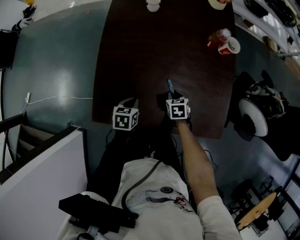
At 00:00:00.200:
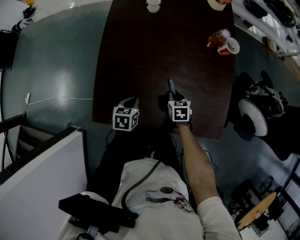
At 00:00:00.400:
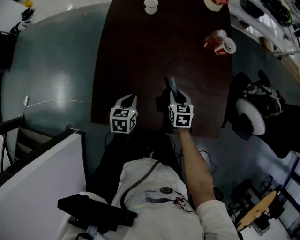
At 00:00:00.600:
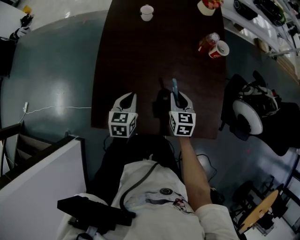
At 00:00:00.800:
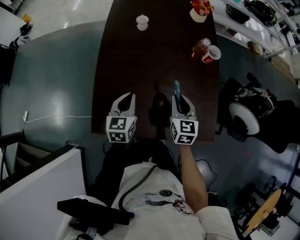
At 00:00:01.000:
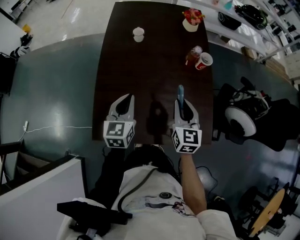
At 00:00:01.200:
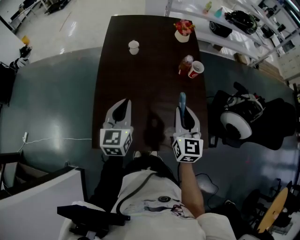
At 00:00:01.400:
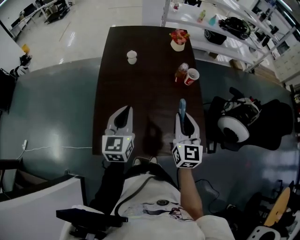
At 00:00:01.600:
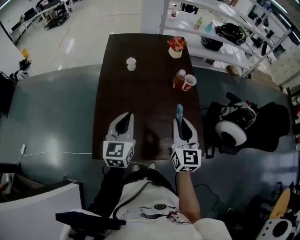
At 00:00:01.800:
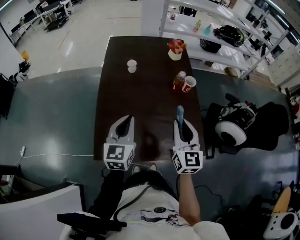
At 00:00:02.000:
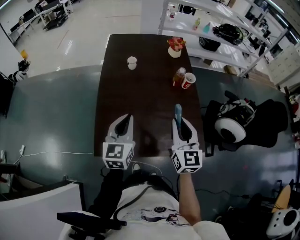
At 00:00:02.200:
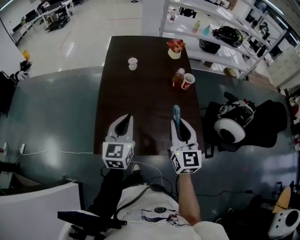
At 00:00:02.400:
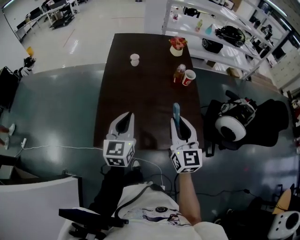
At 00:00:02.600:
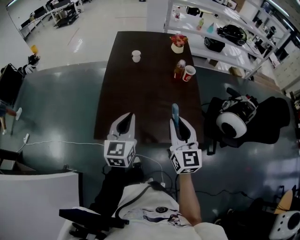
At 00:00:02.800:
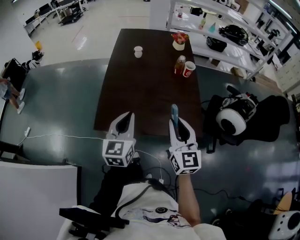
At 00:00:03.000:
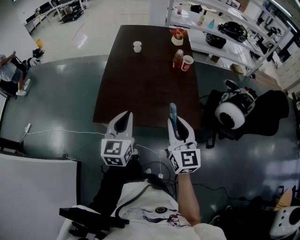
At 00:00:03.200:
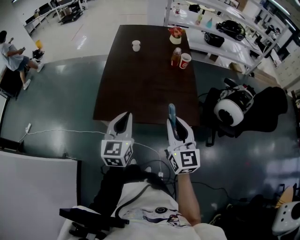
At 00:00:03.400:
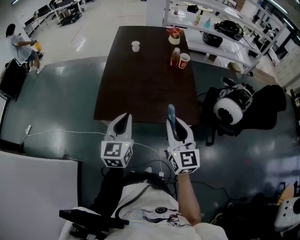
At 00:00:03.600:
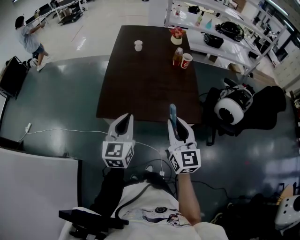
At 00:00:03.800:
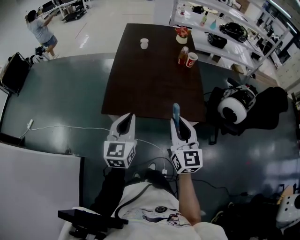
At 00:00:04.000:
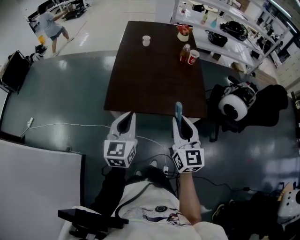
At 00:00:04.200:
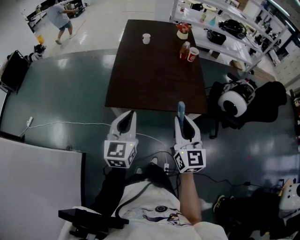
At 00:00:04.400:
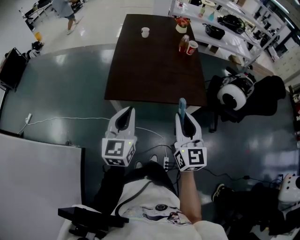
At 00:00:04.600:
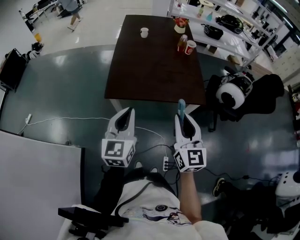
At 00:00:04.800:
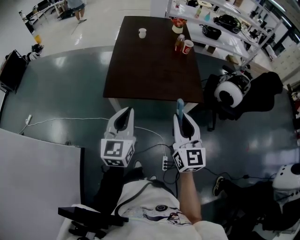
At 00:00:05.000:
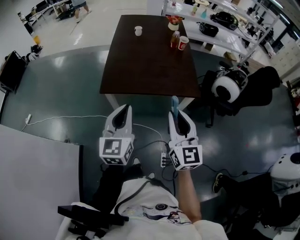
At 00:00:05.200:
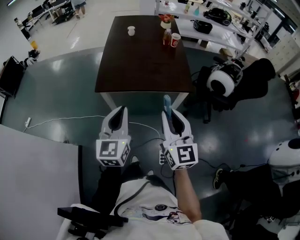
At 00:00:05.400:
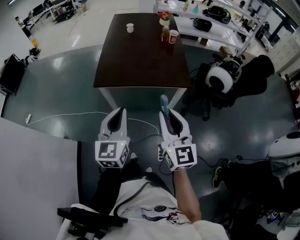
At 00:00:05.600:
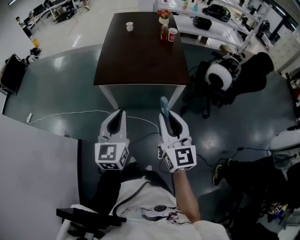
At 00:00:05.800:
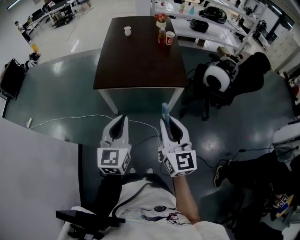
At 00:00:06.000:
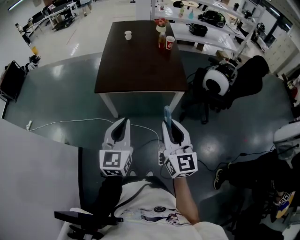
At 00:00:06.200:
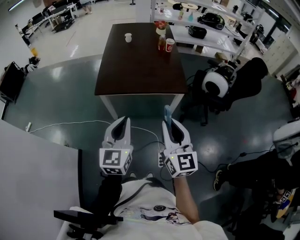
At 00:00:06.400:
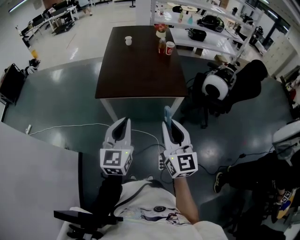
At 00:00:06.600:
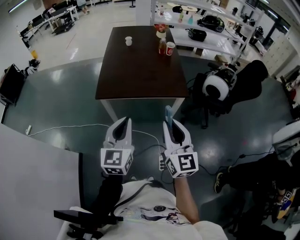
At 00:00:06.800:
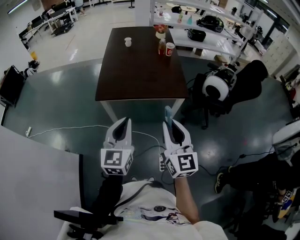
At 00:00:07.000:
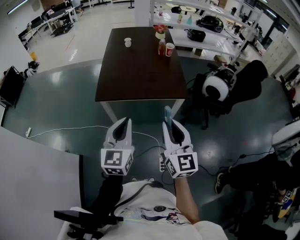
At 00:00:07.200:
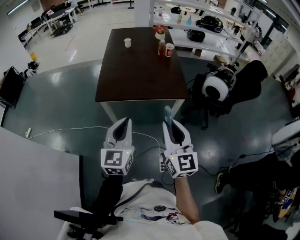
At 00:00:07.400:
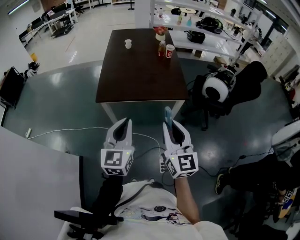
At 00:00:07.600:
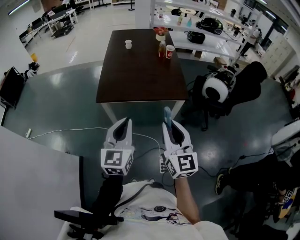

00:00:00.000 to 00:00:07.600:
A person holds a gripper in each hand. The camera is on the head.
00:00:00.000 to 00:00:01.600: Both grippers move upward, roughly 35 cm. The left gripper tilts its fingers approximately 50 degrees upward, while the right gripper tilts its fingers about 60 degrees upward.
00:00:01.600 to 00:00:03.000: The grippers both shift backward by some 20 cm.
00:00:03.000 to 00:00:04.600: The right gripper is displaced backward by approximately 15 cm. Meanwhile the left gripper is displaced backward and to the left by about 15 cm.
00:00:04.600 to 00:00:06.000: The right gripper travels backward by approximately 15 cm. The left gripper is displaced backward and to the right by about 15 cm.
00:00:06.000 to 00:00:07.600: The grippers make only small movements.

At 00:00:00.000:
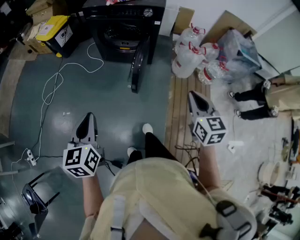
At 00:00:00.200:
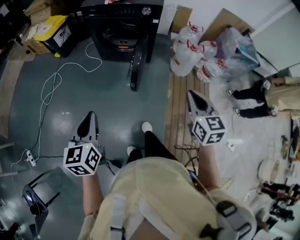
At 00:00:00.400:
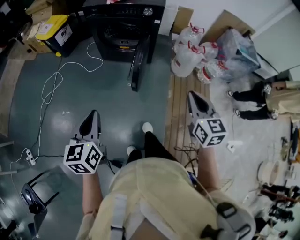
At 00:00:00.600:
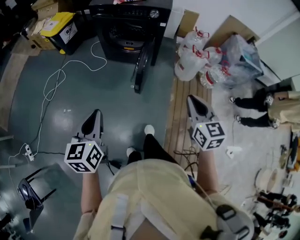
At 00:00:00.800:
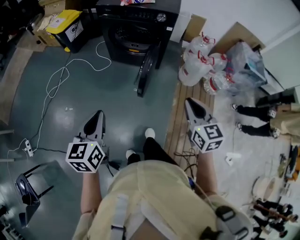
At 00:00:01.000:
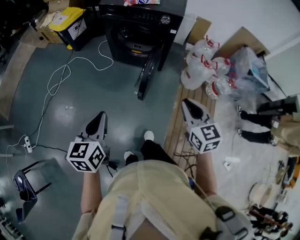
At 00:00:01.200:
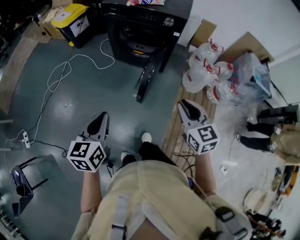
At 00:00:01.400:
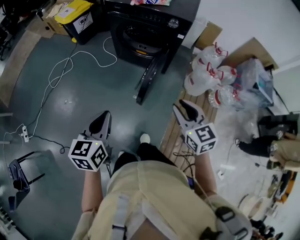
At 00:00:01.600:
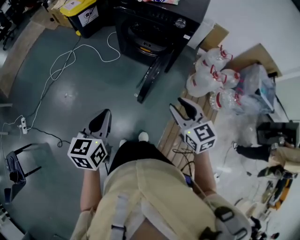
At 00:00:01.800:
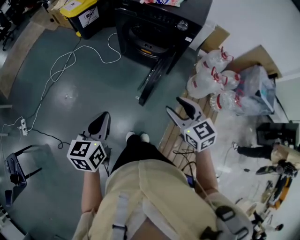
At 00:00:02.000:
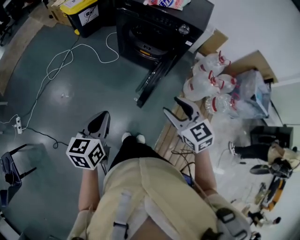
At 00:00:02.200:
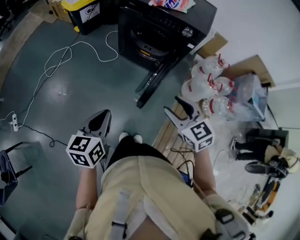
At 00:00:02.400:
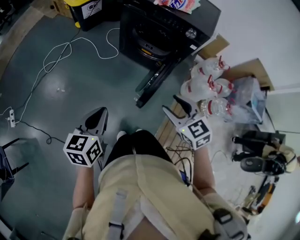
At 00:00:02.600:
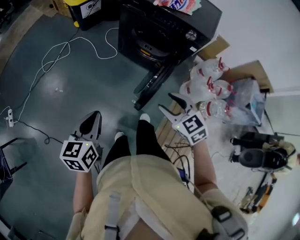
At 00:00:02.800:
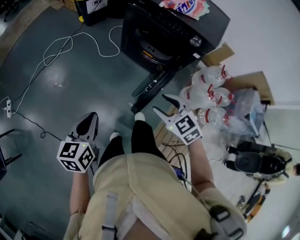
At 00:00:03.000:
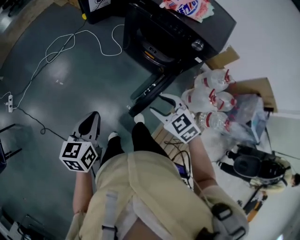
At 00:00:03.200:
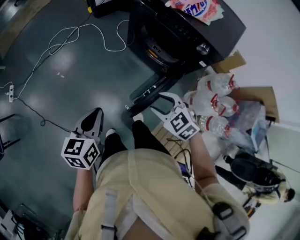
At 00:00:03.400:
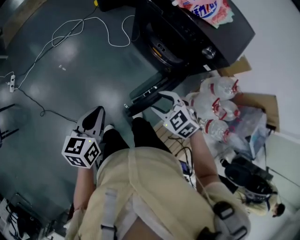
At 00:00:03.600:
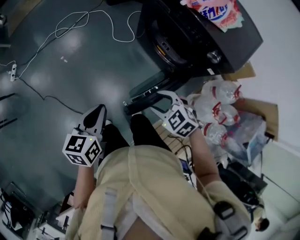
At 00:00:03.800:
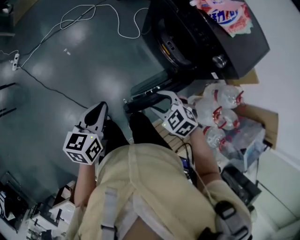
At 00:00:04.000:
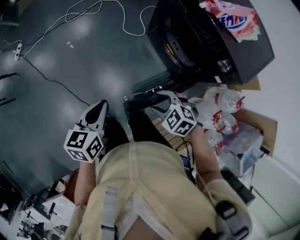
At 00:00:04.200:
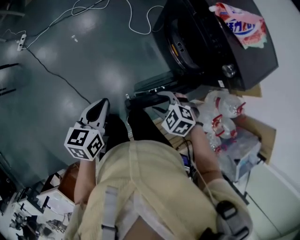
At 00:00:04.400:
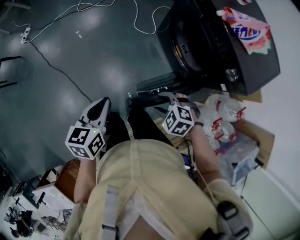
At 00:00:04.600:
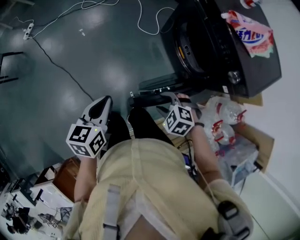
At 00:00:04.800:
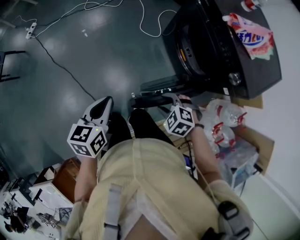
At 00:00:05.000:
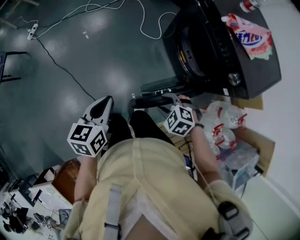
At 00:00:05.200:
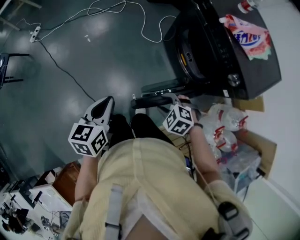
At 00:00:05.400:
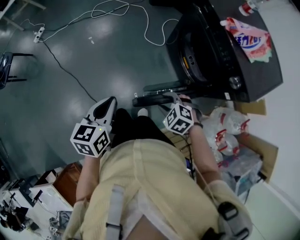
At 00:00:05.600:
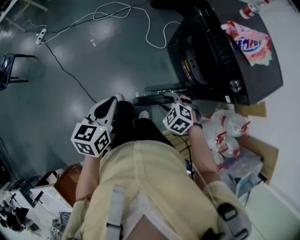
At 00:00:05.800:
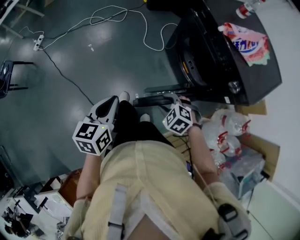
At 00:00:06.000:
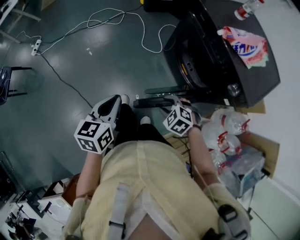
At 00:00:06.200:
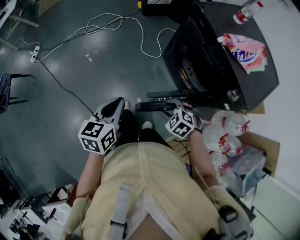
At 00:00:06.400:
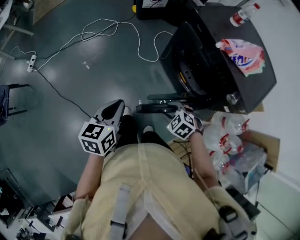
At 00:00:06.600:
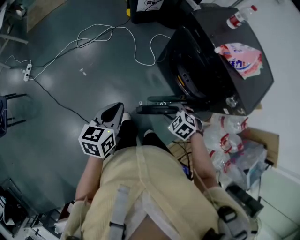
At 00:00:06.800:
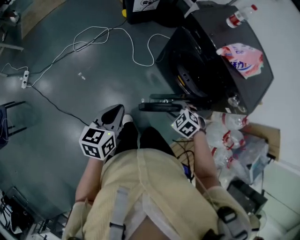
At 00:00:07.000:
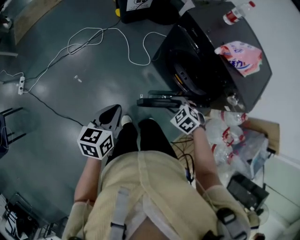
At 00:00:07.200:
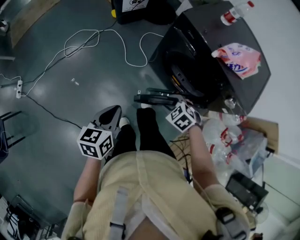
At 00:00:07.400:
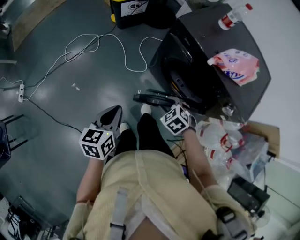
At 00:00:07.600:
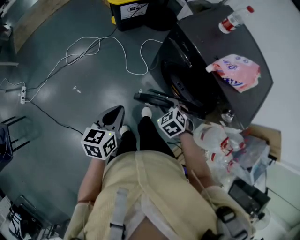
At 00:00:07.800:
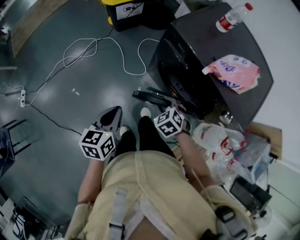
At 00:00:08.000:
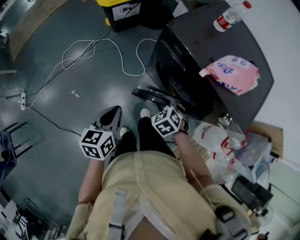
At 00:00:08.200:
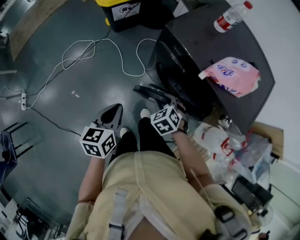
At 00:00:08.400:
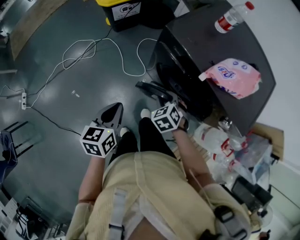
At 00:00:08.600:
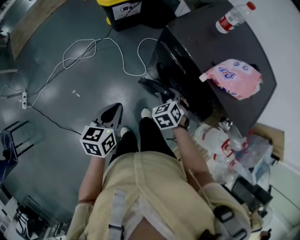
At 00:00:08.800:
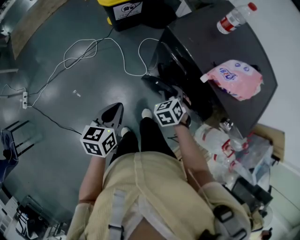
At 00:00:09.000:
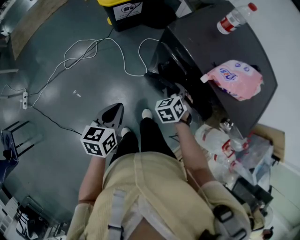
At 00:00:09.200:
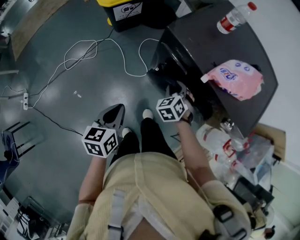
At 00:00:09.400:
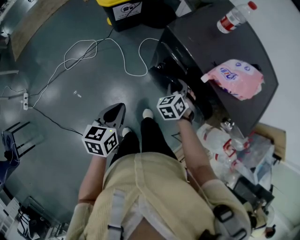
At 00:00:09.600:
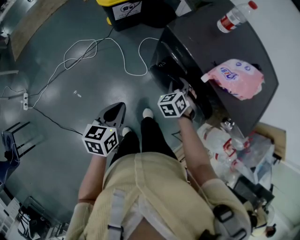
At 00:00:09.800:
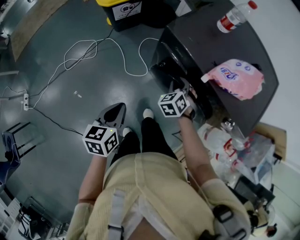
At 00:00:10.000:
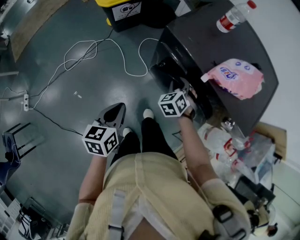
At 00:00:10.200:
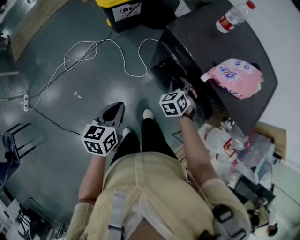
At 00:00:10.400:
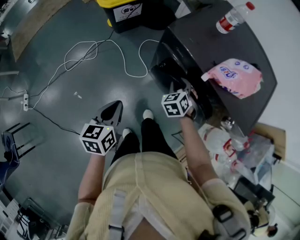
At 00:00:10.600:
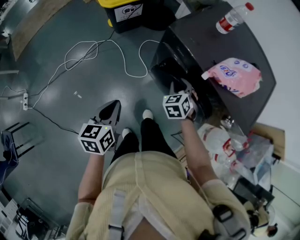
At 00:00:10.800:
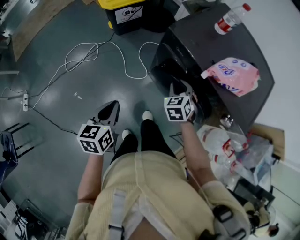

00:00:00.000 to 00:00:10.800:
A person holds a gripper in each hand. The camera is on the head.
00:00:00.000 to 00:00:01.600: The right gripper goes approximately 15 cm forward and to the left, turns by approximately 30 degrees, and opens its fingers. Meanwhile the left gripper is displaced forward and to the right by about 10 cm.
00:00:01.600 to 00:00:03.000: The left gripper goes about 10 cm forward. The right gripper goes some 15 cm forward and downward, and swivels roughly 40 degrees.
00:00:03.000 to 00:00:04.600: The left gripper ends up about 10 cm from where it was, and changes its angle by some 20 degrees, while the right gripper shifts about 15 cm downward, and rotates some 50 degrees.
00:00:04.600 to 00:00:06.200: The grippers both shift forward by roughly 10 cm.
00:00:06.200 to 00:00:07.800: The right gripper moves approximately 25 cm, and swivels about 30 degrees, while the left gripper changes place by approximately 20 cm.
00:00:07.800 to 00:00:09.200: The left gripper shifts by some 5 cm. The right gripper shifts roughly 15 cm forward, and swivels some 20 degrees.
00:00:09.200 to 00:00:10.800: The grippers make only small movements.

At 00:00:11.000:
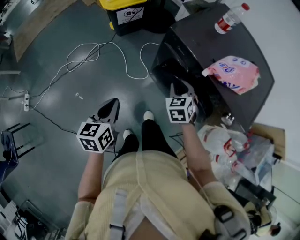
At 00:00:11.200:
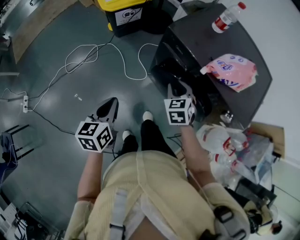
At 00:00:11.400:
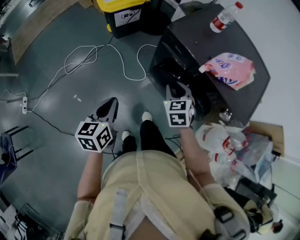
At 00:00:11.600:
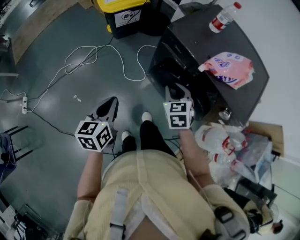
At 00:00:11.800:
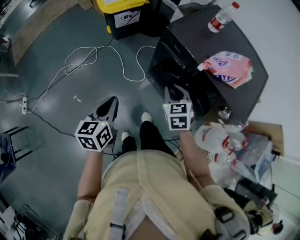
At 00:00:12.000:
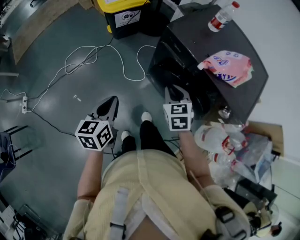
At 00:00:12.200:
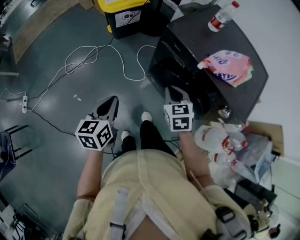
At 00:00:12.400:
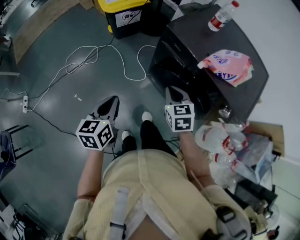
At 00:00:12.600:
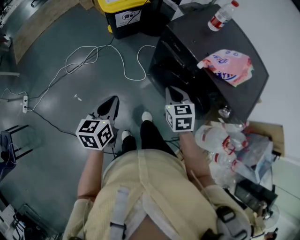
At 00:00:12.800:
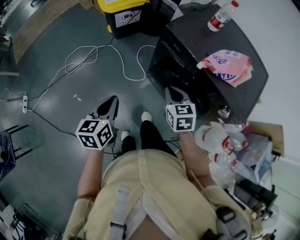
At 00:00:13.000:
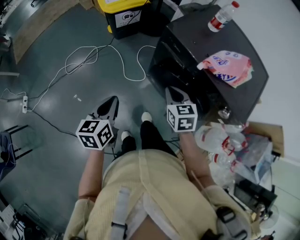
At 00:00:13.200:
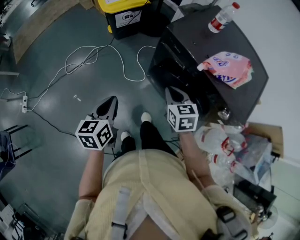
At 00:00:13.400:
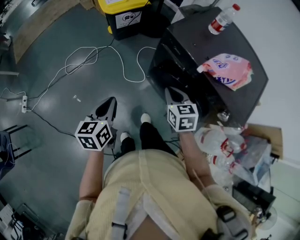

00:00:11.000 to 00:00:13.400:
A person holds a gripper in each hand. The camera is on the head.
00:00:11.000 to 00:00:12.200: The right gripper shifts some 5 cm backward.
00:00:12.200 to 00:00:13.400: The grippers move only a little.
